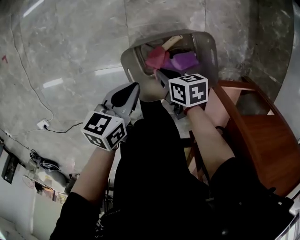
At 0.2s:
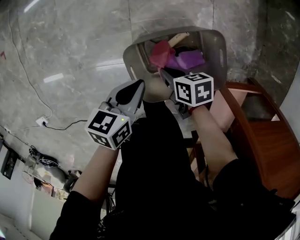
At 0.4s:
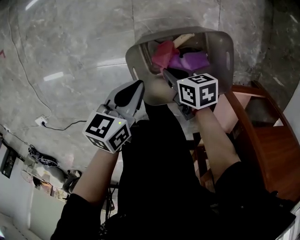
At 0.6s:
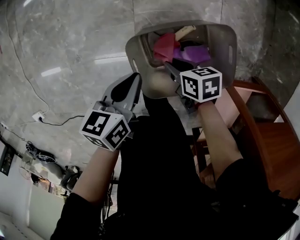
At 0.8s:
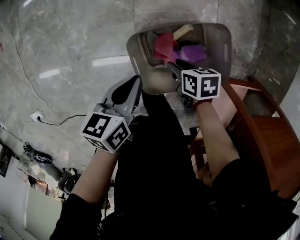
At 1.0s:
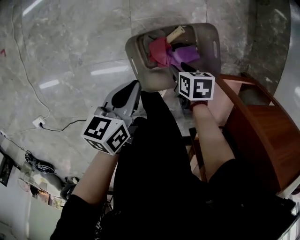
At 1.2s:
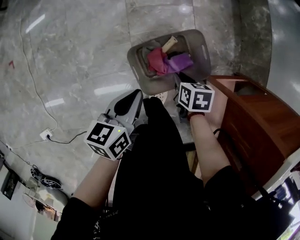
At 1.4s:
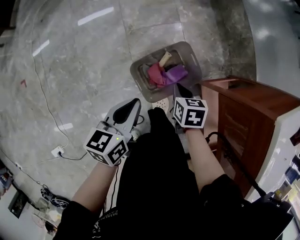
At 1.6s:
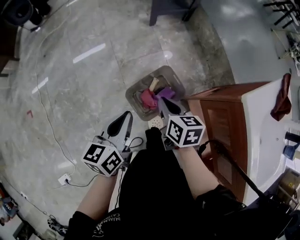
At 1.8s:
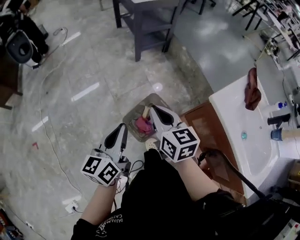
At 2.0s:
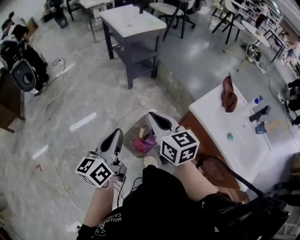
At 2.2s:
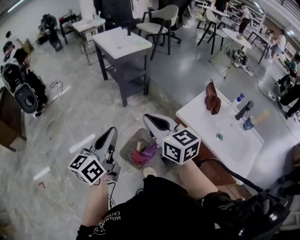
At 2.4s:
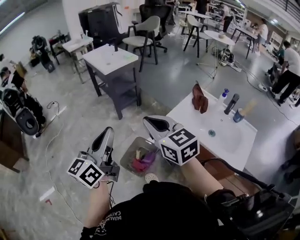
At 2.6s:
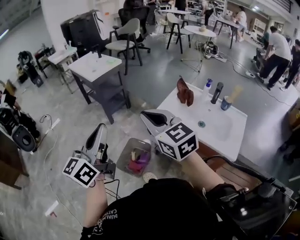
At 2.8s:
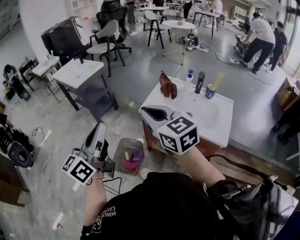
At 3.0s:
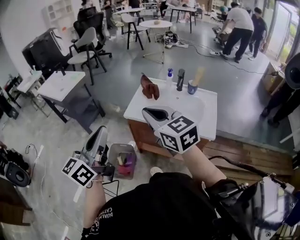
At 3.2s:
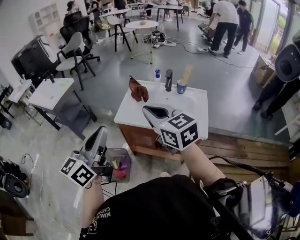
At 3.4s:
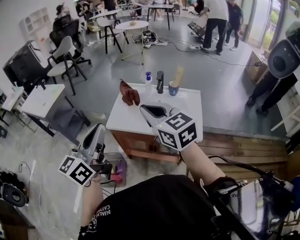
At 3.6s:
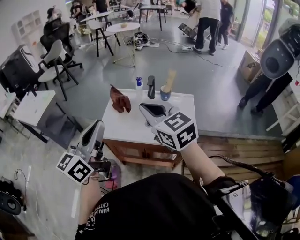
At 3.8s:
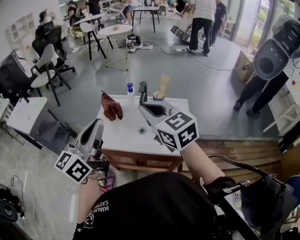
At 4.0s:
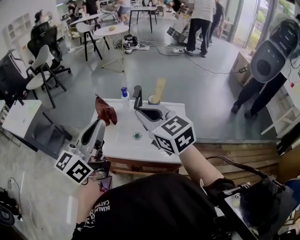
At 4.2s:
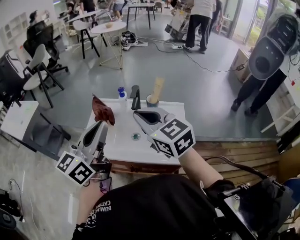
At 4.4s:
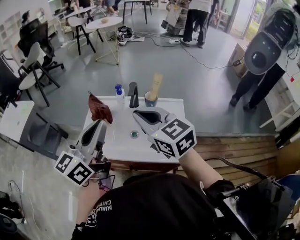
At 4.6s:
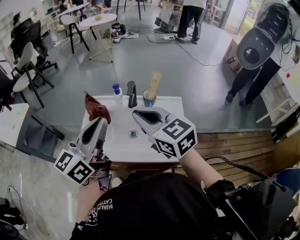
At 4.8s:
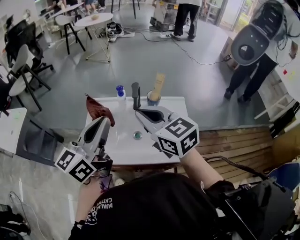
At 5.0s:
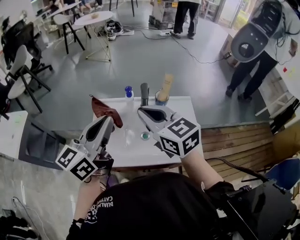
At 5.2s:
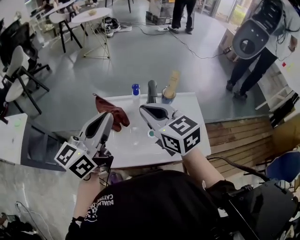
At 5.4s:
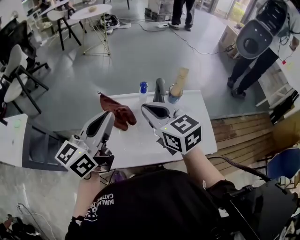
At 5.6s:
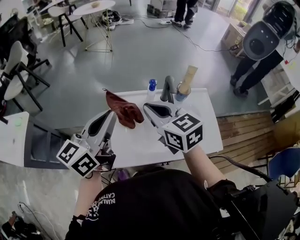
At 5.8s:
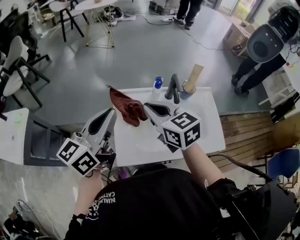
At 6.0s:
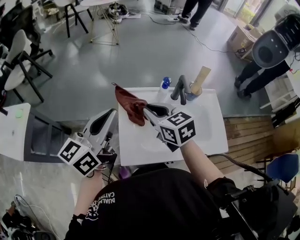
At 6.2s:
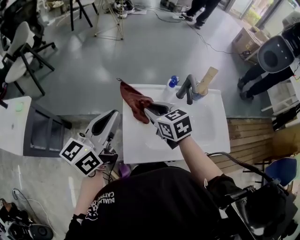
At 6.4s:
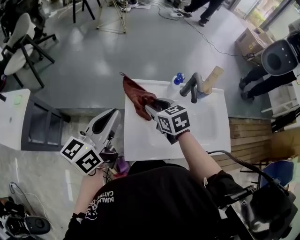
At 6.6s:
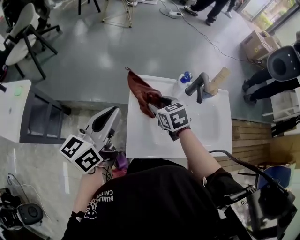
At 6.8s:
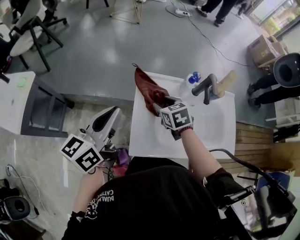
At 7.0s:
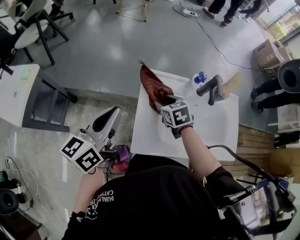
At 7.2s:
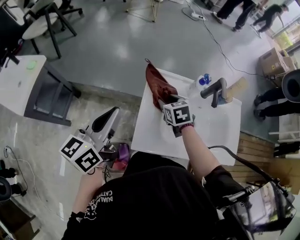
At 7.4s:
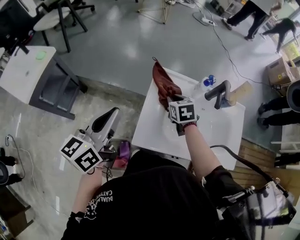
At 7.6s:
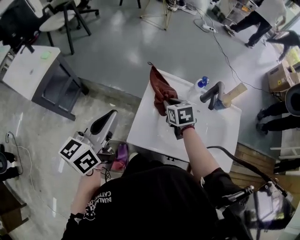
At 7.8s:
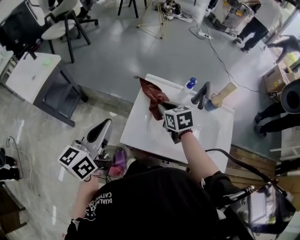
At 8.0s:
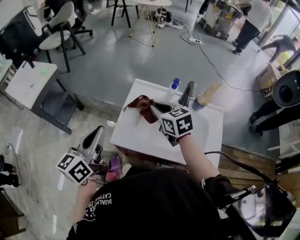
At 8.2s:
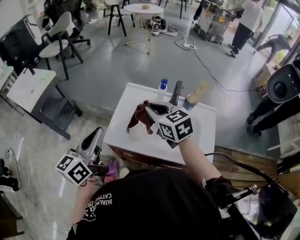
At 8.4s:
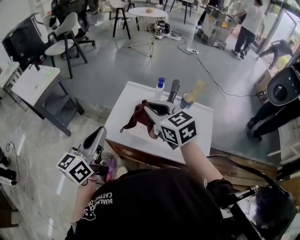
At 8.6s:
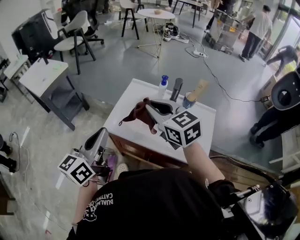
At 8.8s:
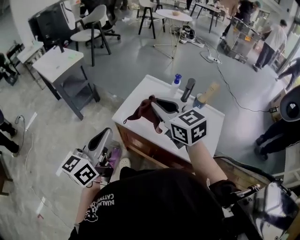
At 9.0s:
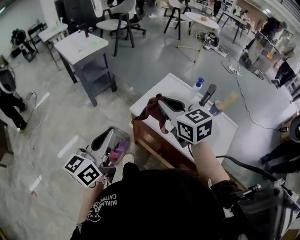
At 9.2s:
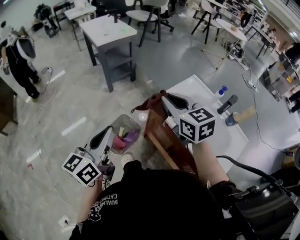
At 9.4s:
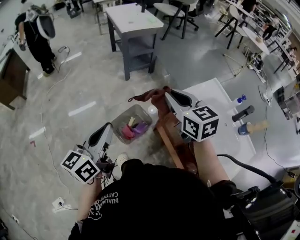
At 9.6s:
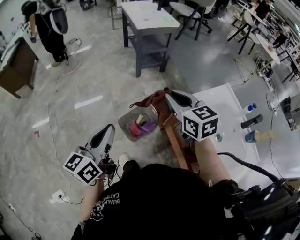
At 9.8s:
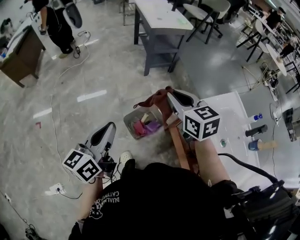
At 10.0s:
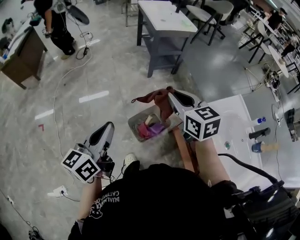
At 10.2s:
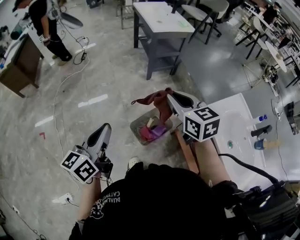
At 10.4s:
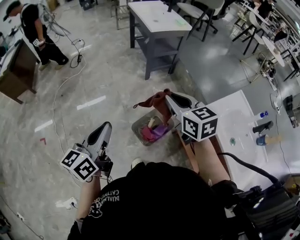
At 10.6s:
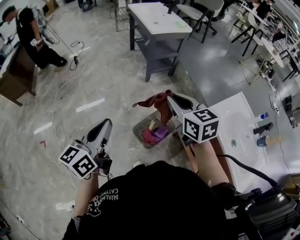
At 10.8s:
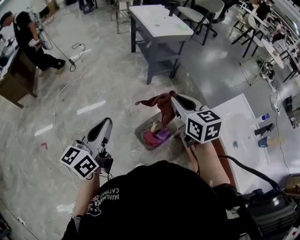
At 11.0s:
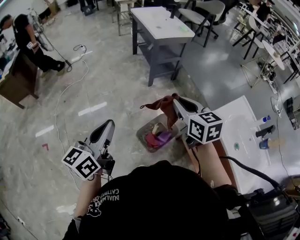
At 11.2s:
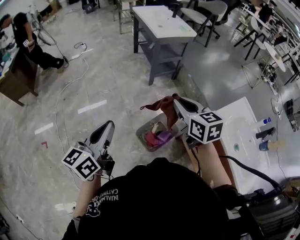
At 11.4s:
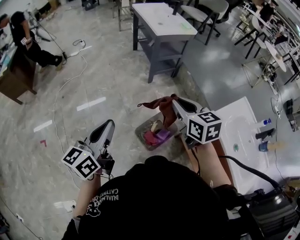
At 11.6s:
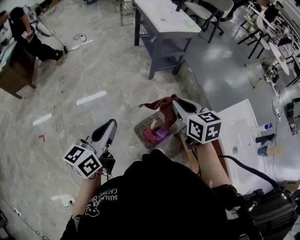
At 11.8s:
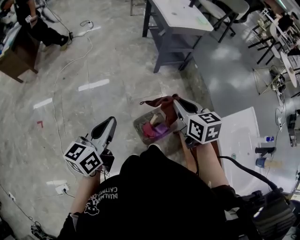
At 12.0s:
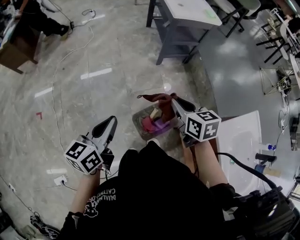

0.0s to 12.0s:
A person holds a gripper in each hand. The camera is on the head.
0.0s to 1.6s: Both grippers travel together upward, approximately 35 cm. The left gripper rotates roughly 30 degrees. The right gripper turns by about 50 degrees, and opens, then closes again.
1.6s to 3.0s: Both grippers move upward, roughly 50 cm. The right gripper turns by some 50 degrees, while the left gripper angles its fingers upward, by approximately 30 degrees.
3.0s to 4.4s: The two grippers go about 35 cm forward and to the right.
4.4s to 6.0s: The right gripper goes some 30 cm to the left, forward and downward, and changes its angle by roughly 20 degrees. The left gripper heads to the left and forward, covering roughly 30 cm.
6.0s to 7.6s: The left gripper shifts approximately 15 cm to the left, backward and downward, and changes its angle by about 20 degrees, while the right gripper is displaced downward by approximately 15 cm, swivels about 20 degrees, and opens and closes again.
7.6s to 9.0s: The right gripper changes place by roughly 35 cm, and changes its angle by roughly 50 degrees. Meanwhile the left gripper ends up some 35 cm from where it was, and rotates about 30 degrees.
9.0s to 10.4s: The right gripper changes place by about 35 cm, and changes its angle by about 20 degrees. The left gripper ends up about 35 cm from where it was, and turns by approximately 30 degrees.
10.4s to 12.0s: The left gripper moves forward and downward, roughly 15 cm. Meanwhile the right gripper moves downward and forward, roughly 15 cm.

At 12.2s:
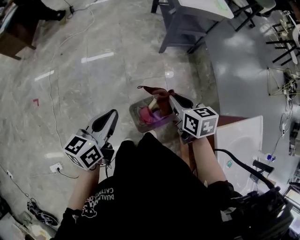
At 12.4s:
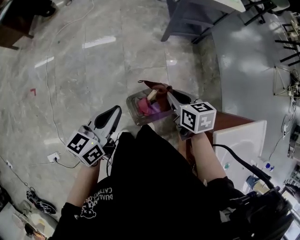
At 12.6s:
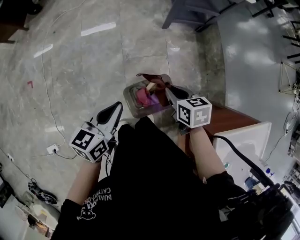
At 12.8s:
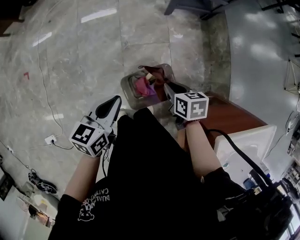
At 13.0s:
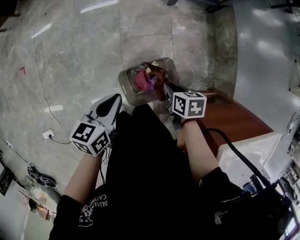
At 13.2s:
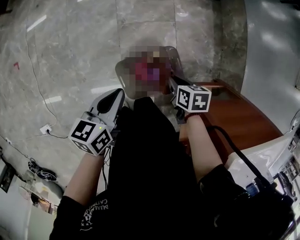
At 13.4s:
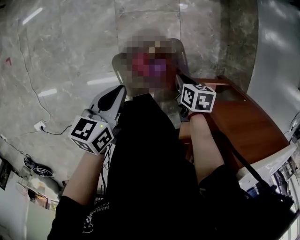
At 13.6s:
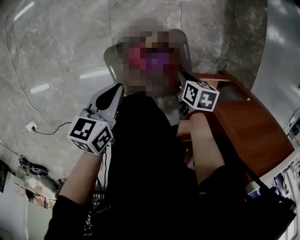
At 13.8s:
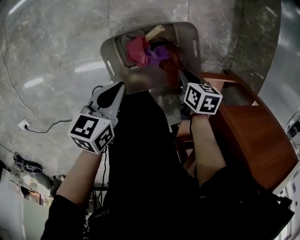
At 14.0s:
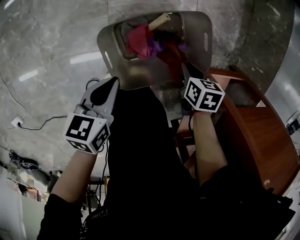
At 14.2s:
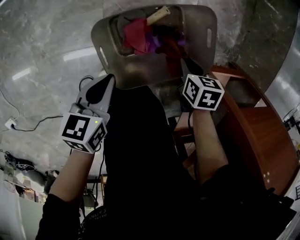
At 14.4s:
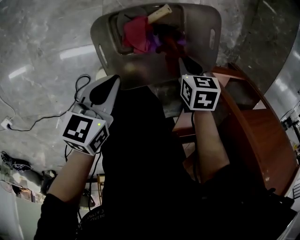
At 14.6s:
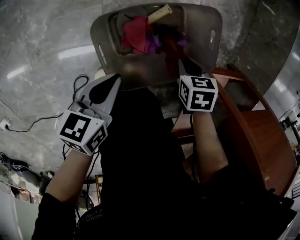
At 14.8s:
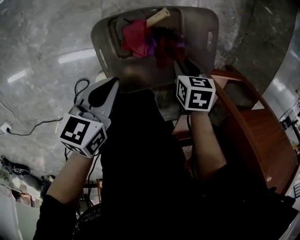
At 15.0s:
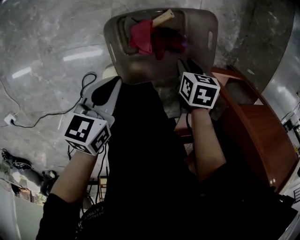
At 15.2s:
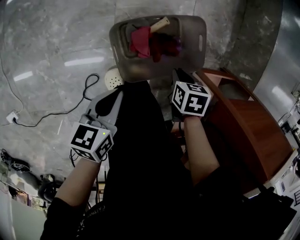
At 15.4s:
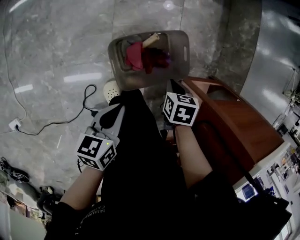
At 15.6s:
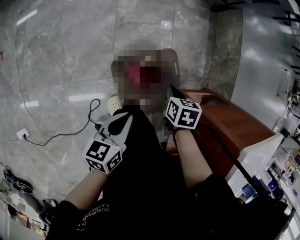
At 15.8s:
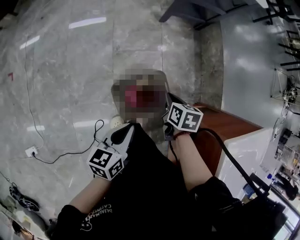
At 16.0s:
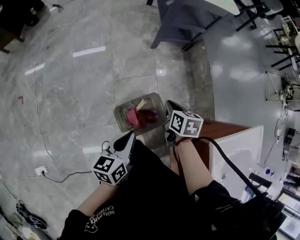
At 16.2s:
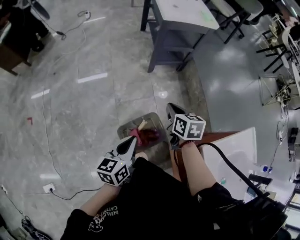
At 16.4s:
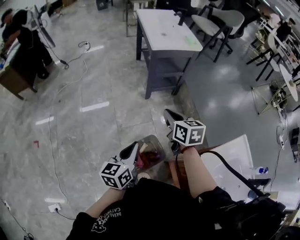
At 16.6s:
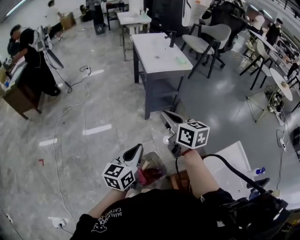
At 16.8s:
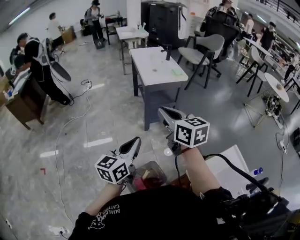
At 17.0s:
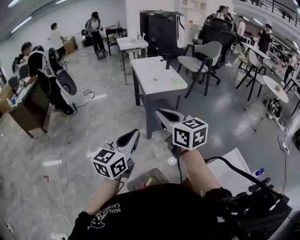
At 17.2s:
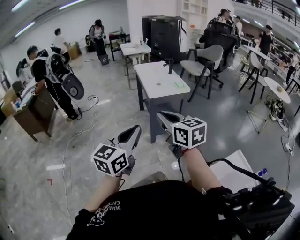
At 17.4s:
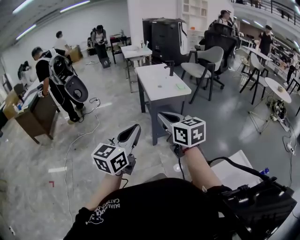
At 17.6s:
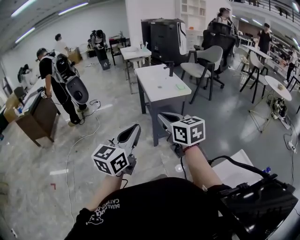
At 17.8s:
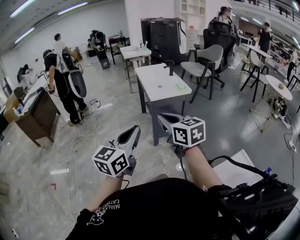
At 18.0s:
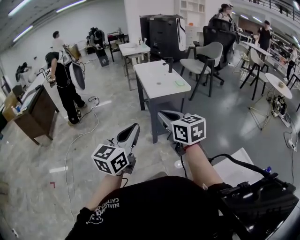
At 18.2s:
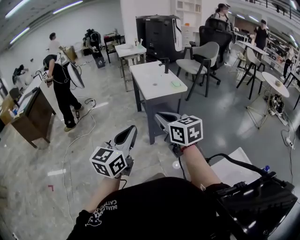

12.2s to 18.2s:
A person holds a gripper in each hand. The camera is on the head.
12.2s to 13.8s: Both grippers travel together downward, about 60 cm. The right gripper tilts its fingers some 30 degrees downward, while the left gripper turns by some 30 degrees.
13.8s to 15.2s: The left gripper reaches roughly 10 cm downward, then returns; the right gripper moves roughly 10 cm downward and comes back.
15.2s to 16.6s: The two grippers go roughly 70 cm upward. The right gripper tilts its fingers some 70 degrees upward. The left gripper tilts its fingers some 30 degrees upward.
16.6s to 18.2s: The left gripper is displaced upward by about 15 cm, and turns by approximately 20 degrees; the right gripper moves upward, about 10 cm.

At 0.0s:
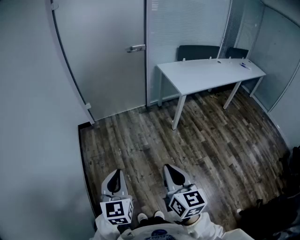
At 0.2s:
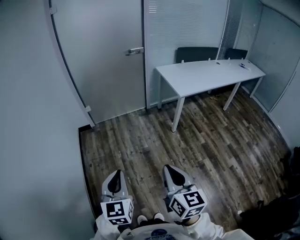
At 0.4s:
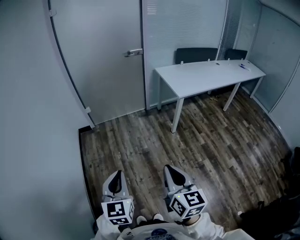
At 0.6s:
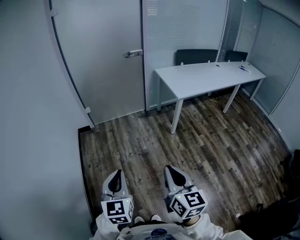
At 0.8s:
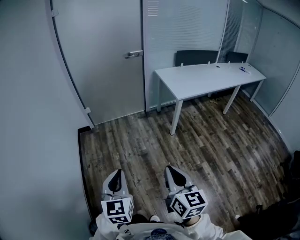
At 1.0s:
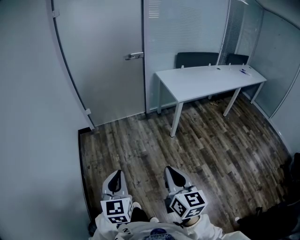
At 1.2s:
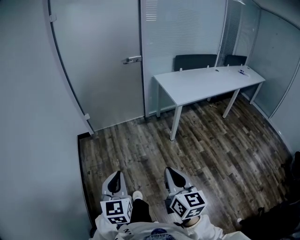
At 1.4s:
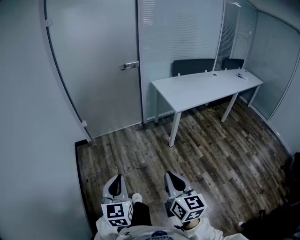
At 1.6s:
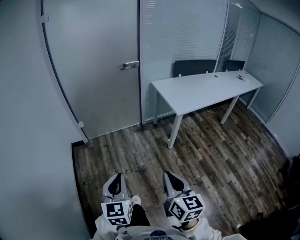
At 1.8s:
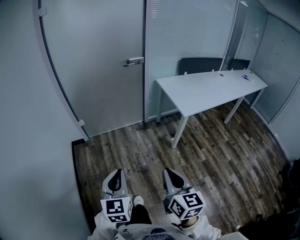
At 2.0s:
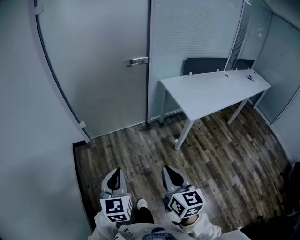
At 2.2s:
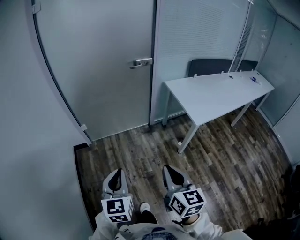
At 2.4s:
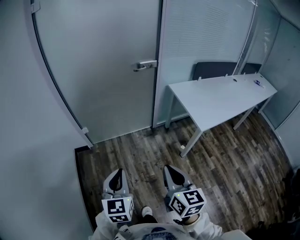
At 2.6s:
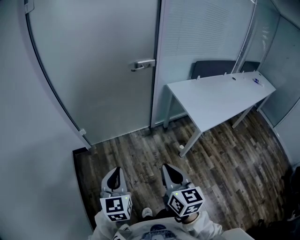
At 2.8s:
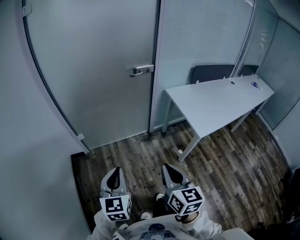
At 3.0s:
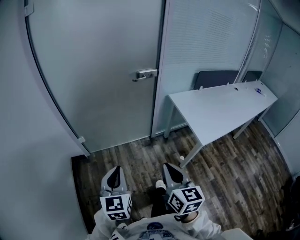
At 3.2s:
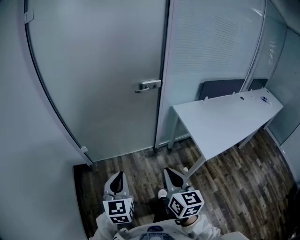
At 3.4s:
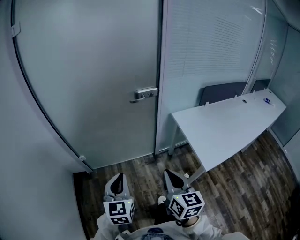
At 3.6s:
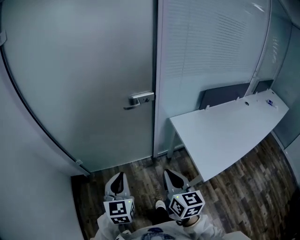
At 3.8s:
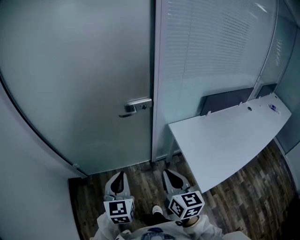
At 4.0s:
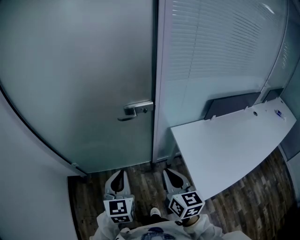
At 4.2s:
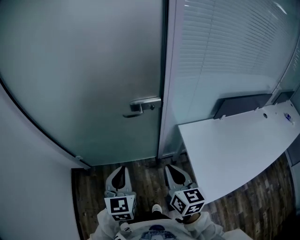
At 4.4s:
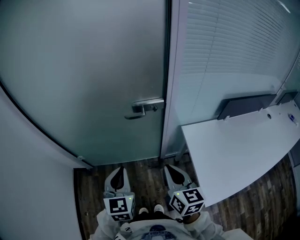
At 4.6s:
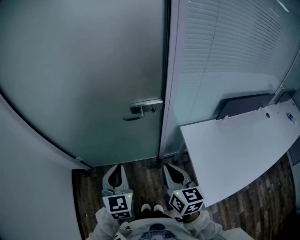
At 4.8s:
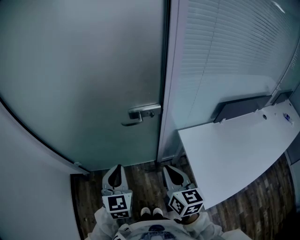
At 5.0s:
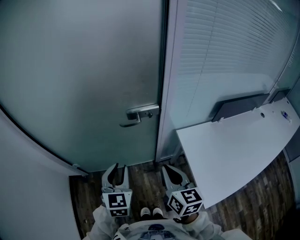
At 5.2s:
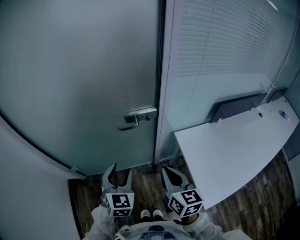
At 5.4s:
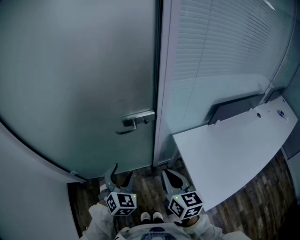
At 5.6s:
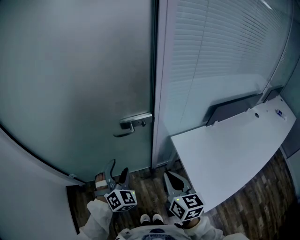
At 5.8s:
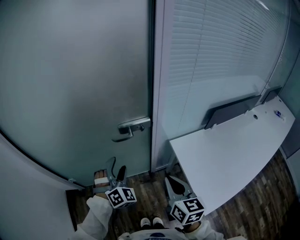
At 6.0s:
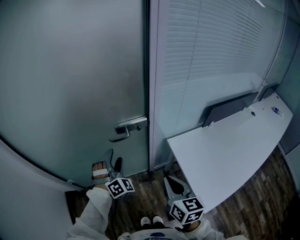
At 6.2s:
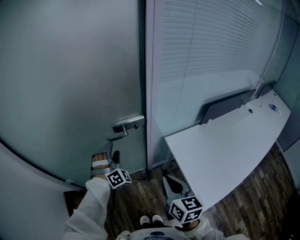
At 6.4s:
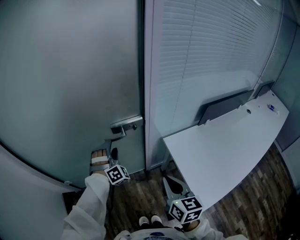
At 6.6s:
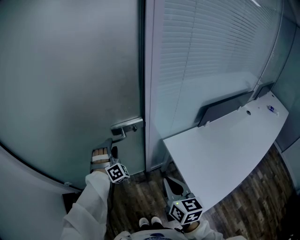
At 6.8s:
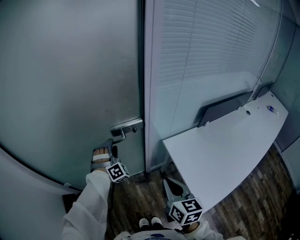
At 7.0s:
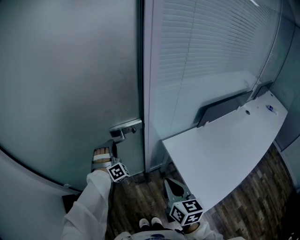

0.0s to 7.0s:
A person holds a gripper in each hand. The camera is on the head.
0.0s to 1.4s: The left gripper shifts roughly 10 cm forward and to the right, while the right gripper shifts approximately 10 cm to the right and forward.
1.4s to 2.8s: The two grippers go some 40 cm forward.
2.8s to 4.2s: The two grippers travel together, forward and to the right, approximately 40 cm.
4.2s to 5.6s: The right gripper moves forward, about 5 cm. Meanwhile the left gripper travels forward by about 10 cm, rotates around the line of its fingers by approximately 50 degrees, clockwise from behind, and opens.
5.6s to 7.0s: The left gripper travels forward by some 15 cm, changes its angle by some 30 degrees, and closes its fingers.
